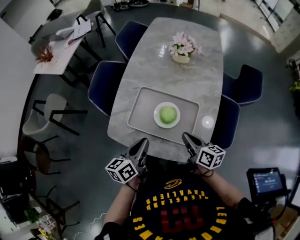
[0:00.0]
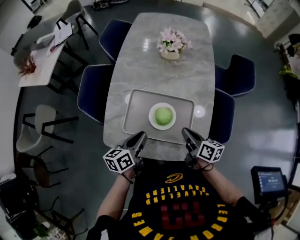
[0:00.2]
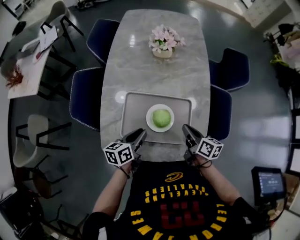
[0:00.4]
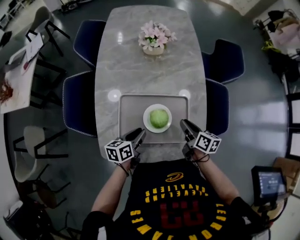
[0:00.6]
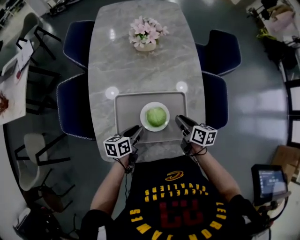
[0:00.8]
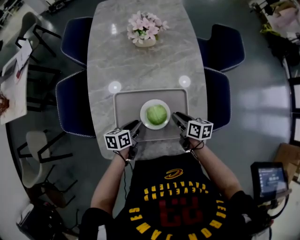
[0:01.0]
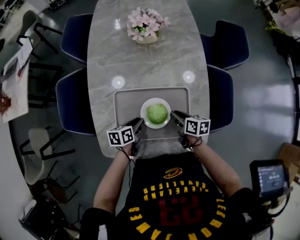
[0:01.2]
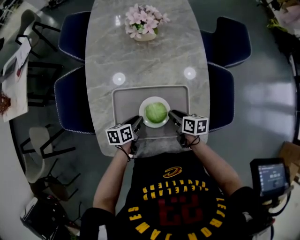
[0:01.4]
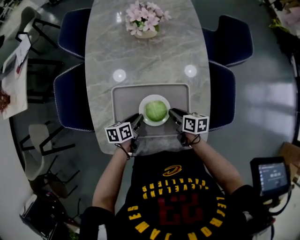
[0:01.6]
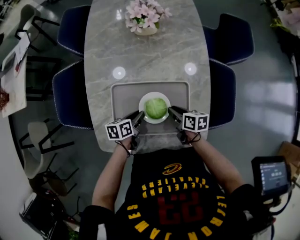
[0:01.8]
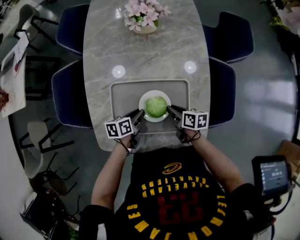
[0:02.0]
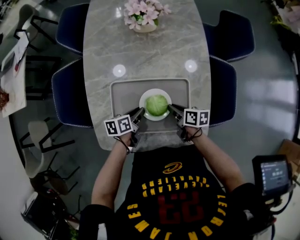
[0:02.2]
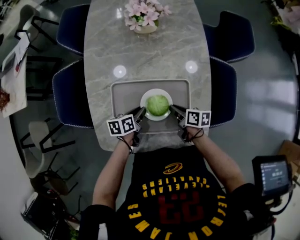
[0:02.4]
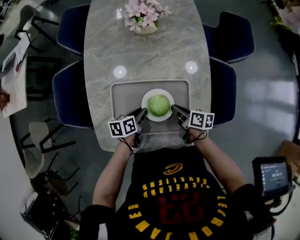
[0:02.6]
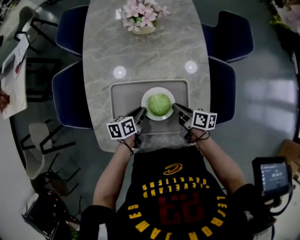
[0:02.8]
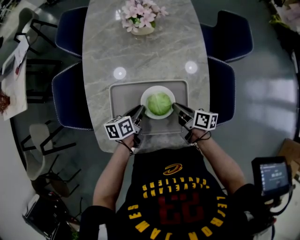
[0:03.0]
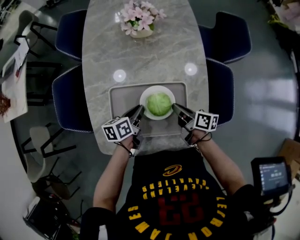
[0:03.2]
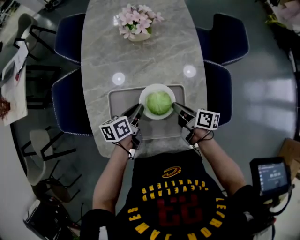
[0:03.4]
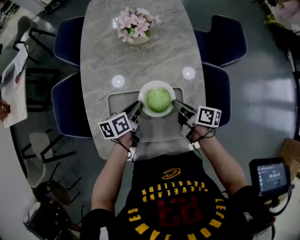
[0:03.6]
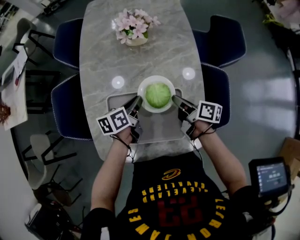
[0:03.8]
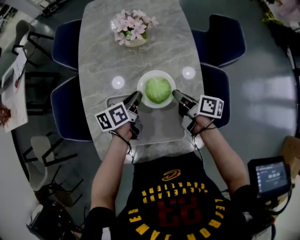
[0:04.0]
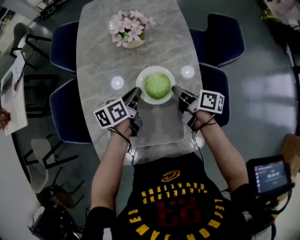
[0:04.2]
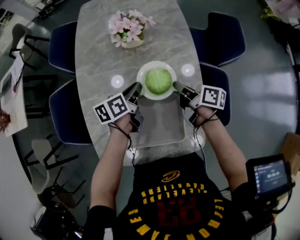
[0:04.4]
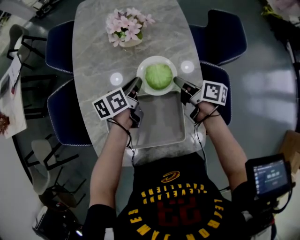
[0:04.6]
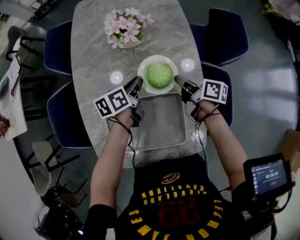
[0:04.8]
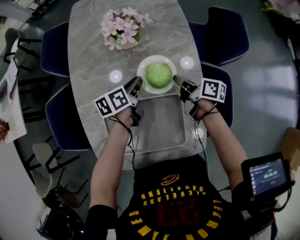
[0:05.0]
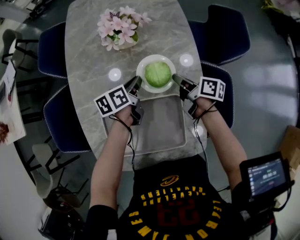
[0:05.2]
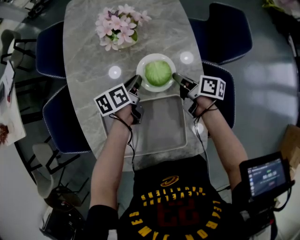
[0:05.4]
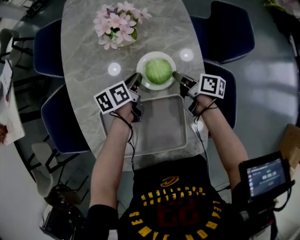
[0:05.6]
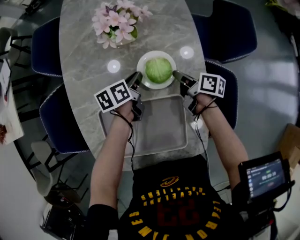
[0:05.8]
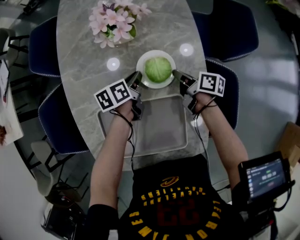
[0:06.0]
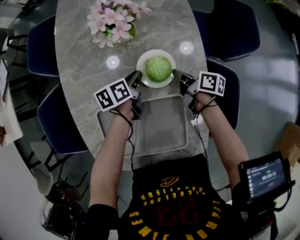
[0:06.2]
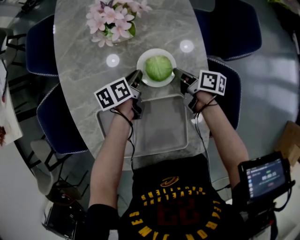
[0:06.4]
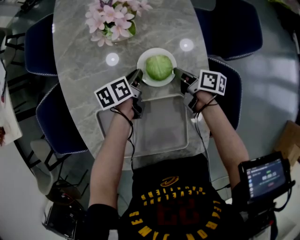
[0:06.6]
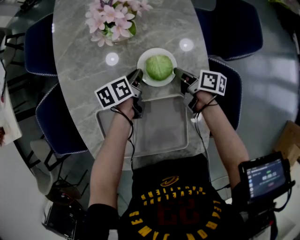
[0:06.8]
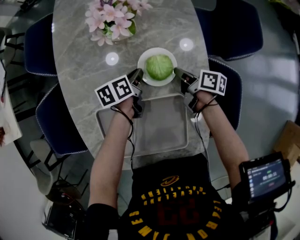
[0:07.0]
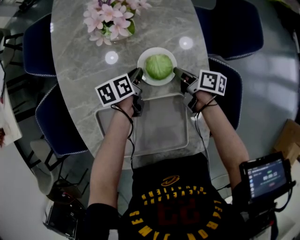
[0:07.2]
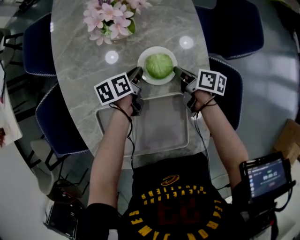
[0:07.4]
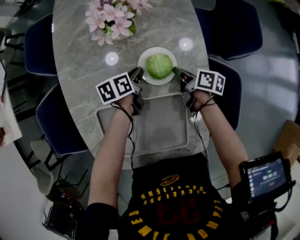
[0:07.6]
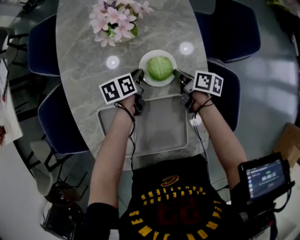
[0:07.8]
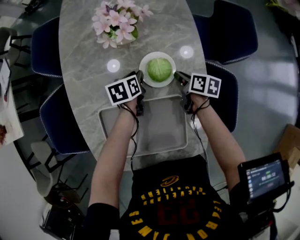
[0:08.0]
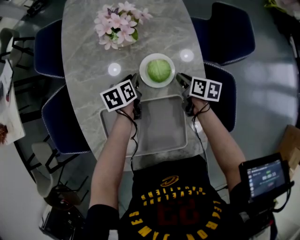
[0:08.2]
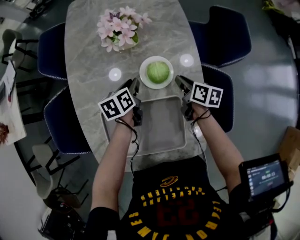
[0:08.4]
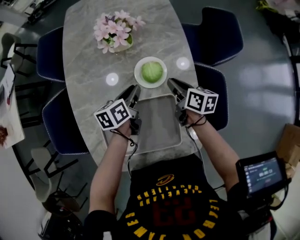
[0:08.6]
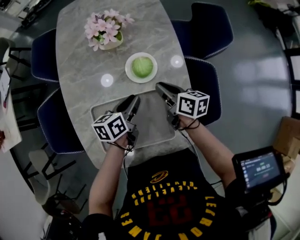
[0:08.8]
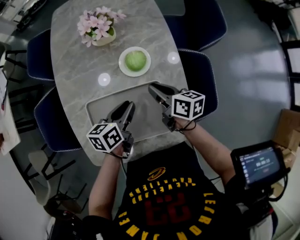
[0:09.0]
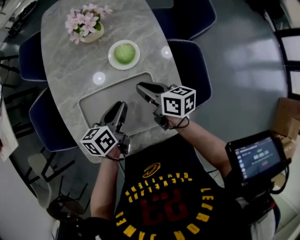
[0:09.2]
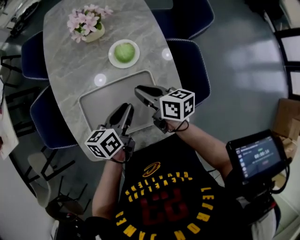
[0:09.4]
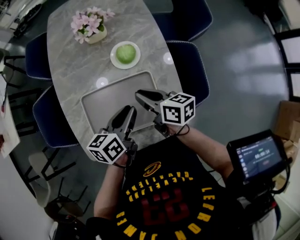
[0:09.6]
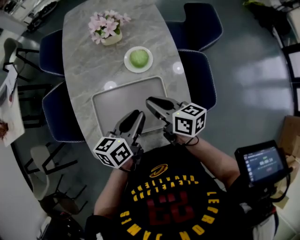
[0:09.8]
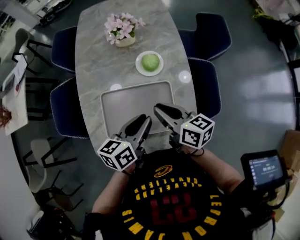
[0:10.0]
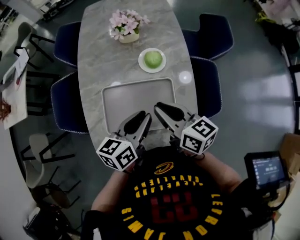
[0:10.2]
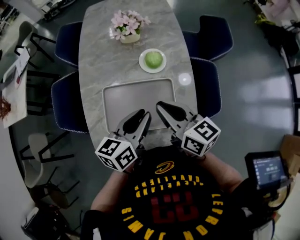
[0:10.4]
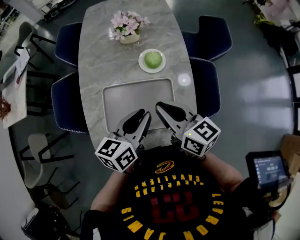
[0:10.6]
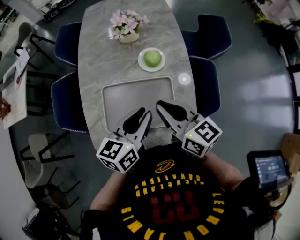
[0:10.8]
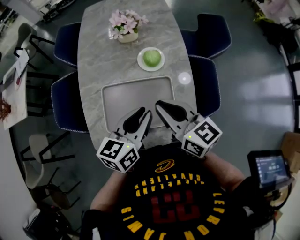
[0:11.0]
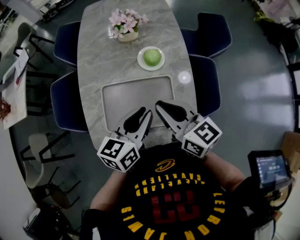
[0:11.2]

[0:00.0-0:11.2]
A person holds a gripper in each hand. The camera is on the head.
0.0 to 1.6 s: Both grippers move downward, about 20 cm. The left gripper turns by approximately 40 degrees, and opens its fingers; the right gripper changes its angle by approximately 30 degrees.
1.6 to 3.2 s: Both grippers travel together upward, some 5 cm. The right gripper changes its angle by about 20 degrees.
3.2 to 4.8 s: Both grippers travel together forward, some 20 cm.
4.8 to 6.4 s: Both grippers move downward, approximately 10 cm.
6.4 to 8.0 s: The grippers move only a little.
8.0 to 9.6 s: The left gripper heads backward and upward, covering about 25 cm, and turns by some 30 degrees. The right gripper travels backward, upward and to the left by about 25 cm, and turns by roughly 30 degrees.
9.6 to 11.2 s: The two grippers go some 15 cm upward and backward. The right gripper changes its angle by roughly 30 degrees.

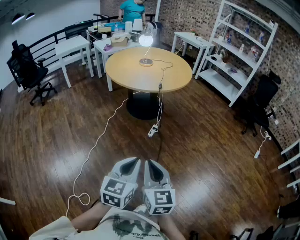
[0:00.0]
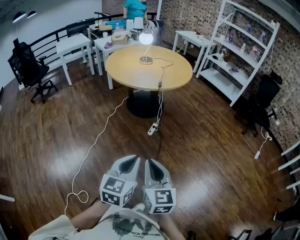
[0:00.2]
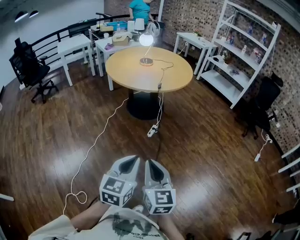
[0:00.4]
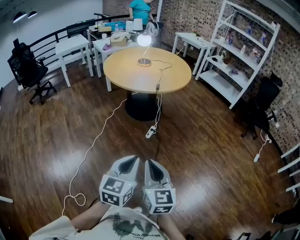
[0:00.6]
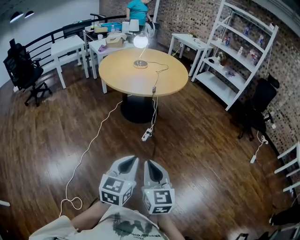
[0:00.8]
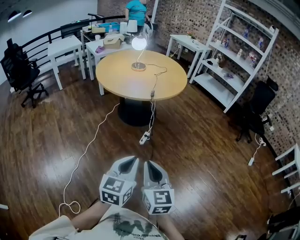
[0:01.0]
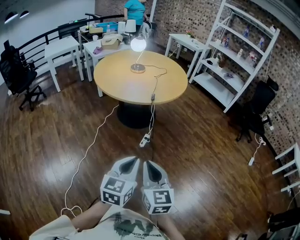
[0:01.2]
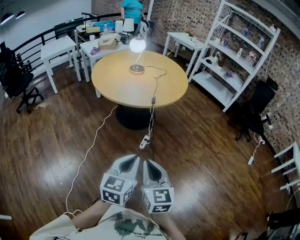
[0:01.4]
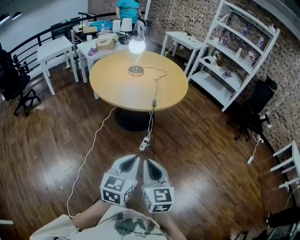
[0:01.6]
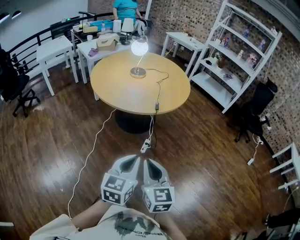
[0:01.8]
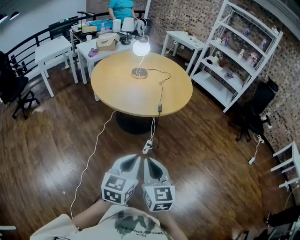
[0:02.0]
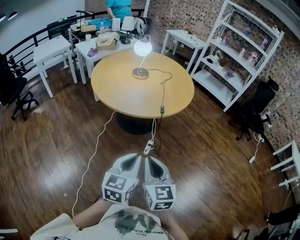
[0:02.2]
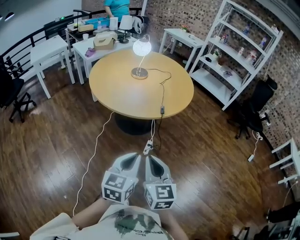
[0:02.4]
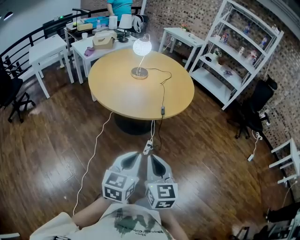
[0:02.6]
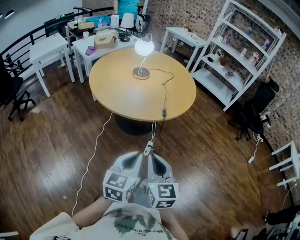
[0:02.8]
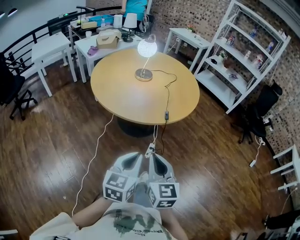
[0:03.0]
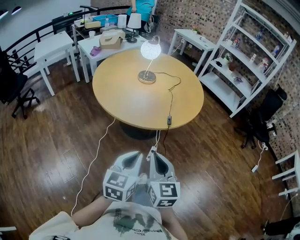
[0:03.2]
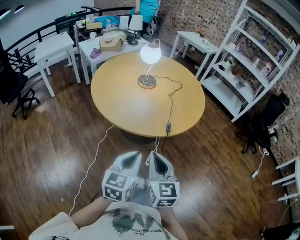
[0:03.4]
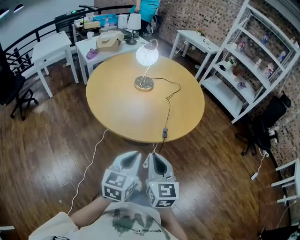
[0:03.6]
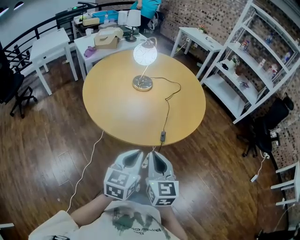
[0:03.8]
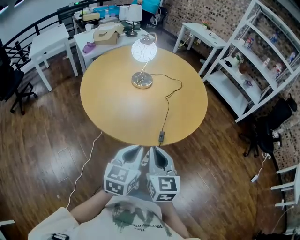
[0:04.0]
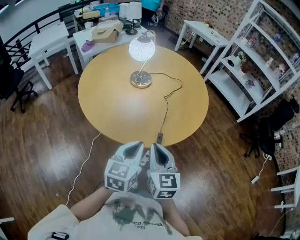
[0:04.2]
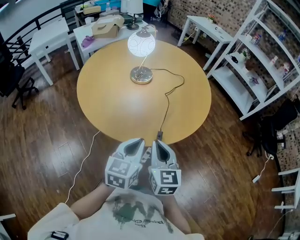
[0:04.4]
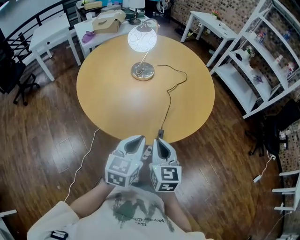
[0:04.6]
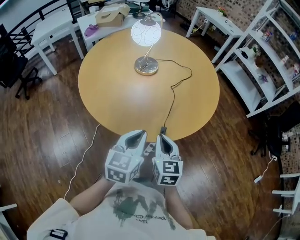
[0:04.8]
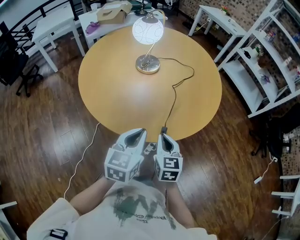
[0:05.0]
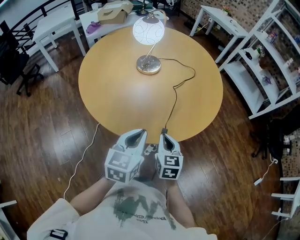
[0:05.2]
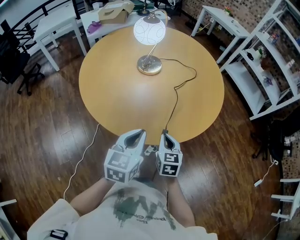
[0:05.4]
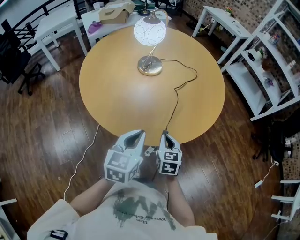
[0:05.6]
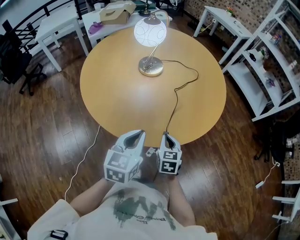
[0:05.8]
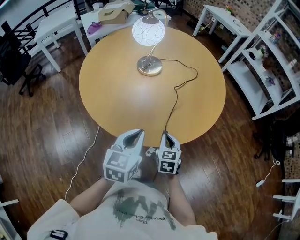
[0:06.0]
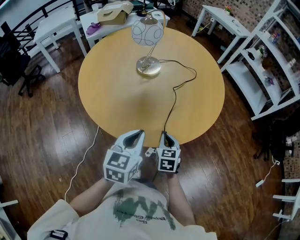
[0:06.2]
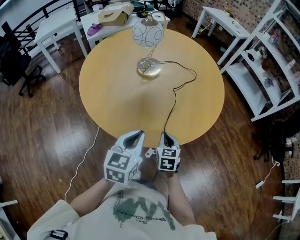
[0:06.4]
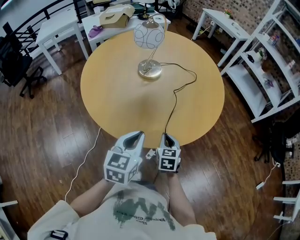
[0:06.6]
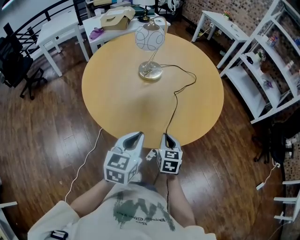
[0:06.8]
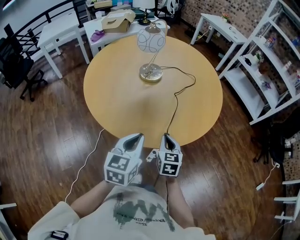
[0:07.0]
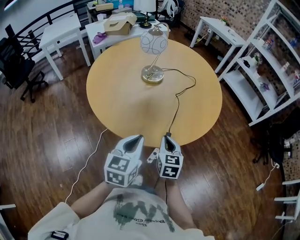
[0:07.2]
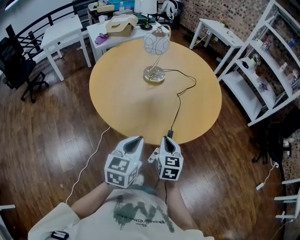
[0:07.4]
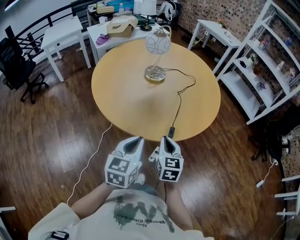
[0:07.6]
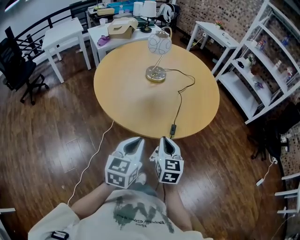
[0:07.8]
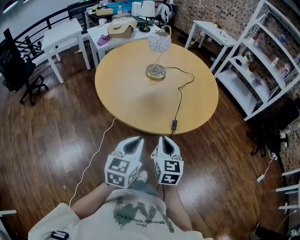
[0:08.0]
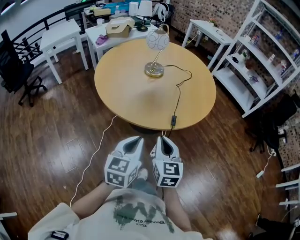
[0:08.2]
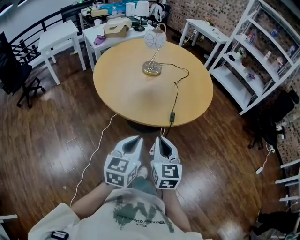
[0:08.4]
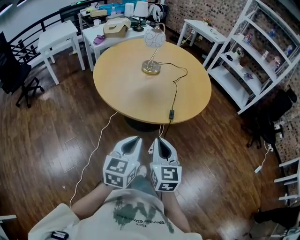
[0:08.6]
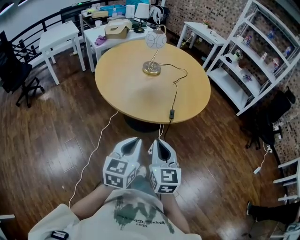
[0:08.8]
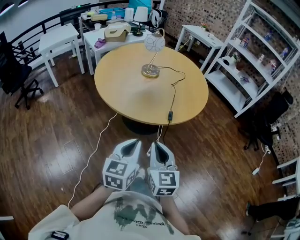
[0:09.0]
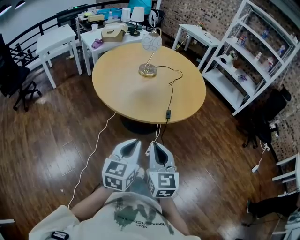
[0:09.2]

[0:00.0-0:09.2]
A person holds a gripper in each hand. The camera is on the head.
0.0 to 1.6 s: Both grippers travel together forward, roughly 25 cm.
1.6 to 3.0 s: Both grippers travel together forward and to the left, about 20 cm.
3.0 to 4.6 s: The two grippers go about 30 cm forward.
4.6 to 6.2 s: The right gripper heads downward and forward, covering some 15 cm, and changes its angle by approximately 20 degrees.
6.2 to 7.6 s: The left gripper goes about 10 cm backward; the right gripper heads upward, backward and to the left, covering approximately 15 cm.
7.6 to 9.2 s: The right gripper travels backward and upward by approximately 25 cm. Meanwhile the left gripper travels backward by approximately 15 cm.

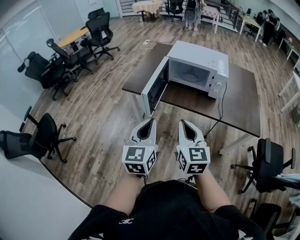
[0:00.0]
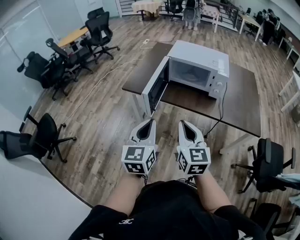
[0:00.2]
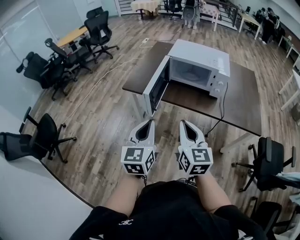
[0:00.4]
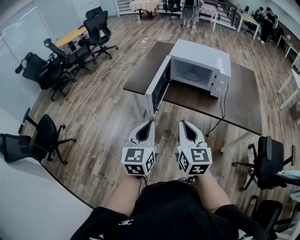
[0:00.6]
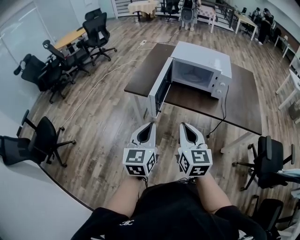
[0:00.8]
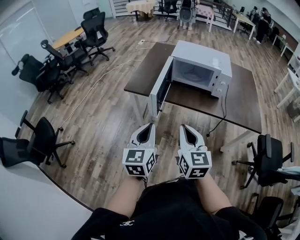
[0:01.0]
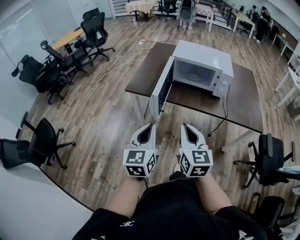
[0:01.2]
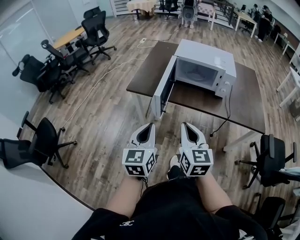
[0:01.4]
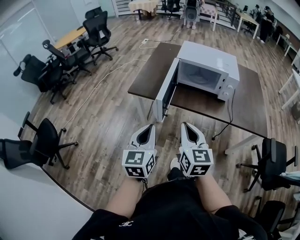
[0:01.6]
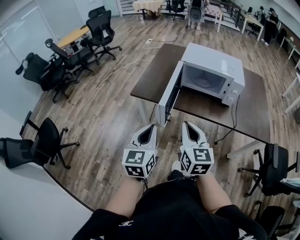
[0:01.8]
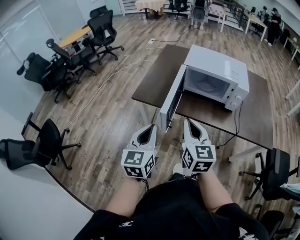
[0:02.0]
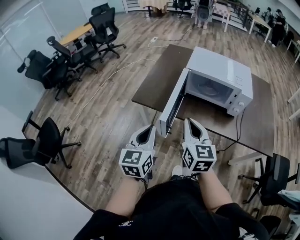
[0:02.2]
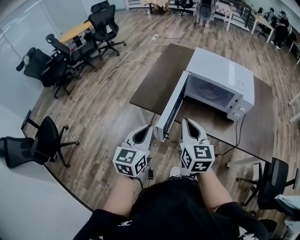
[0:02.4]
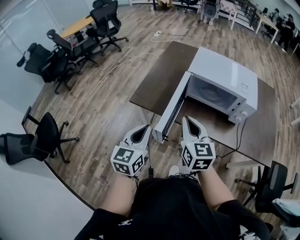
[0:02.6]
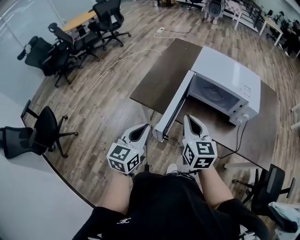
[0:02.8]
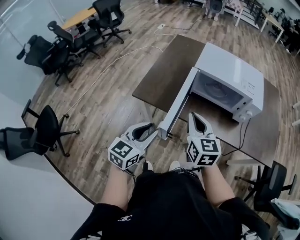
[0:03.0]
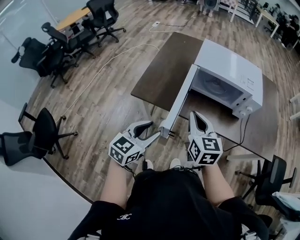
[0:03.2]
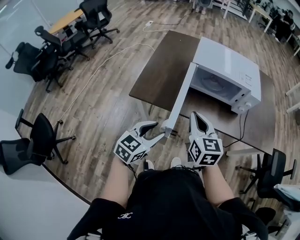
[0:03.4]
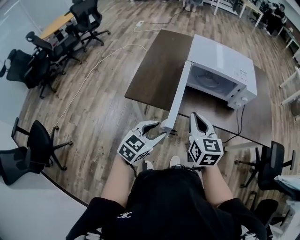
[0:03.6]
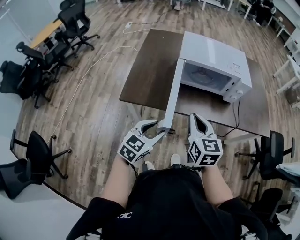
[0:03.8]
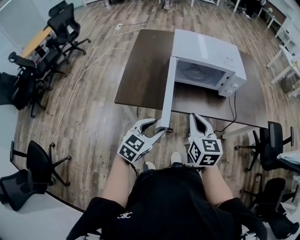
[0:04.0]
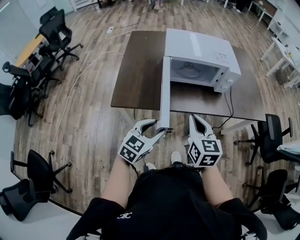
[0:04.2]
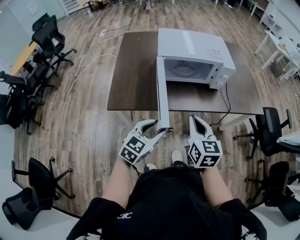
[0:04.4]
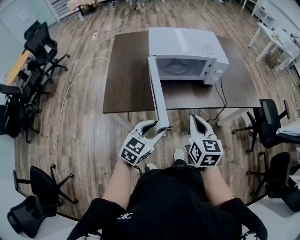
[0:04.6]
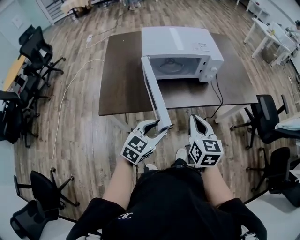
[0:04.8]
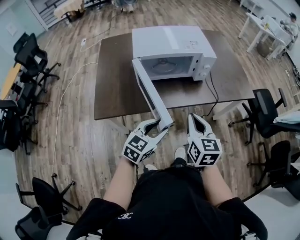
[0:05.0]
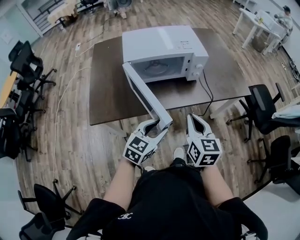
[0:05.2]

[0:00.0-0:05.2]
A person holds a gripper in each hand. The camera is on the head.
0.0 to 1.8 s: The right gripper heads forward and to the left, covering roughly 10 cm, while the left gripper shifts approximately 10 cm to the left and forward.
1.8 to 3.4 s: The left gripper travels forward and downward by some 15 cm, swivels roughly 40 degrees, and opens its fingers; the right gripper goes about 15 cm forward.
3.4 to 5.2 s: The right gripper changes place by about 15 cm, and changes its angle by about 30 degrees, while the left gripper ends up approximately 15 cm from where it was, and turns by about 30 degrees.
